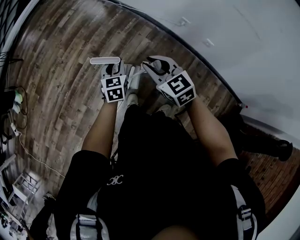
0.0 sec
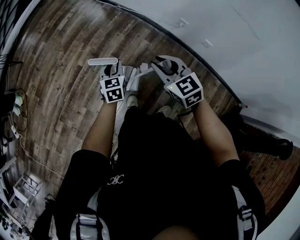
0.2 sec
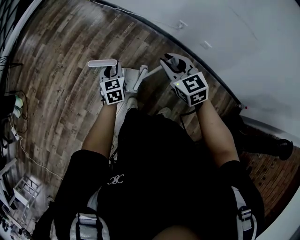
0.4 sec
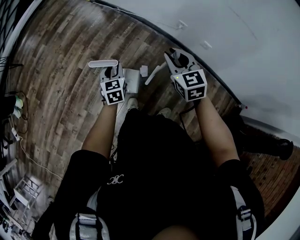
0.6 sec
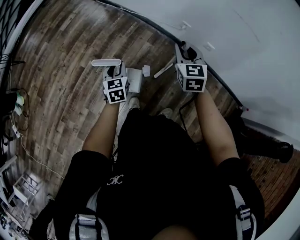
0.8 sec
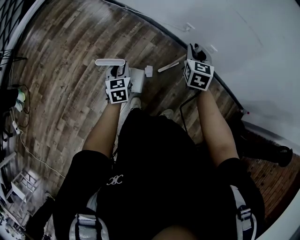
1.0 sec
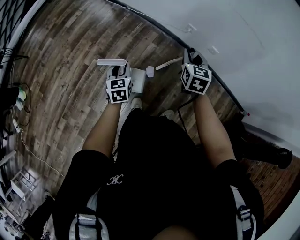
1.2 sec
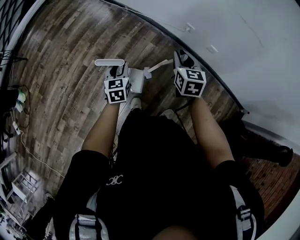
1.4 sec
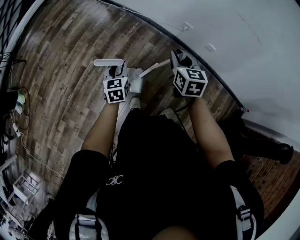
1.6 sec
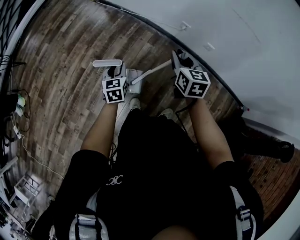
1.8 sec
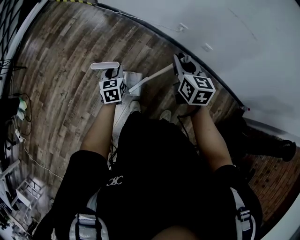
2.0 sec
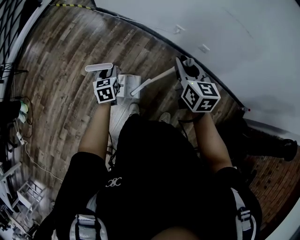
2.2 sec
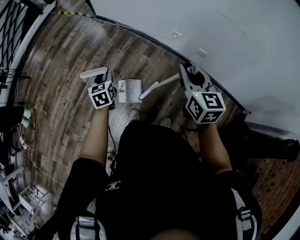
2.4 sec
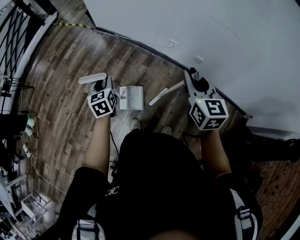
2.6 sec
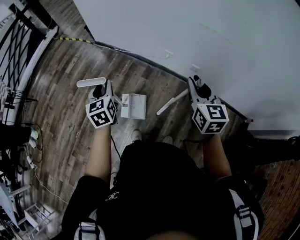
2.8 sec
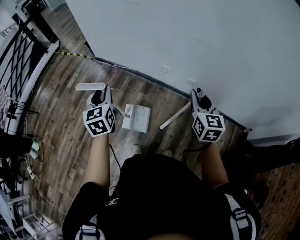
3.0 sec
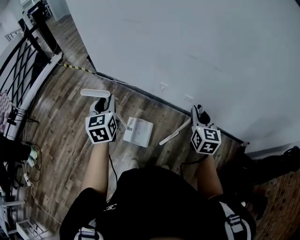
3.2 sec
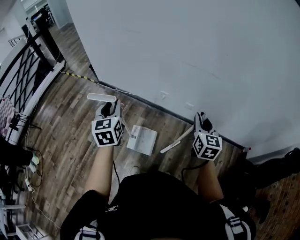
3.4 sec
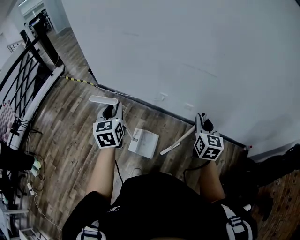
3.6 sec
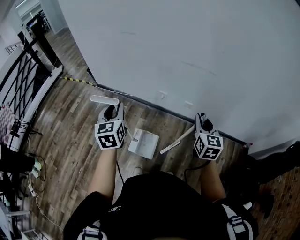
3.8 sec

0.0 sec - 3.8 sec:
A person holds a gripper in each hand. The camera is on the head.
0.0 sec - 1.2 sec: The right gripper shifts by some 20 cm, and rotates some 40 degrees.
1.2 sec - 2.6 sec: The left gripper goes approximately 10 cm upward; the right gripper heads upward, backward and to the right, covering roughly 20 cm.
2.6 sec - 3.8 sec: The right gripper heads to the right, covering about 15 cm, and changes its angle by approximately 20 degrees. The left gripper travels upward and to the right by approximately 25 cm, and changes its angle by approximately 20 degrees.

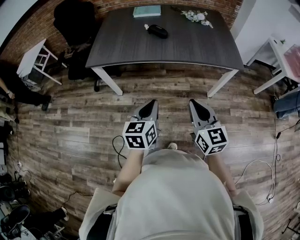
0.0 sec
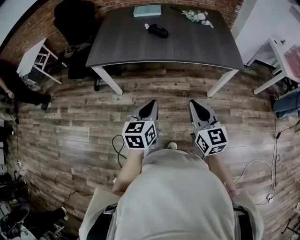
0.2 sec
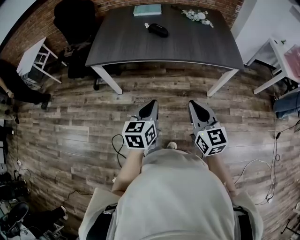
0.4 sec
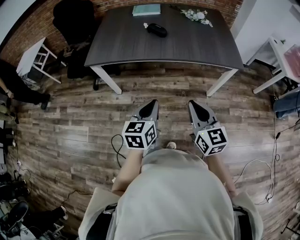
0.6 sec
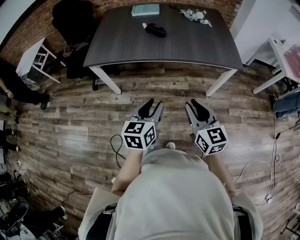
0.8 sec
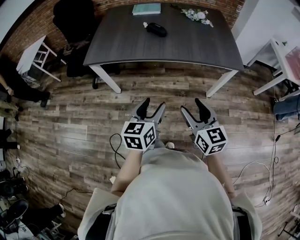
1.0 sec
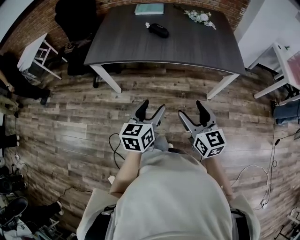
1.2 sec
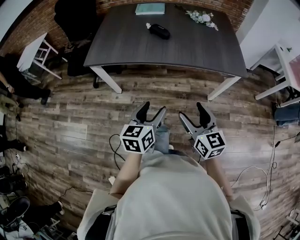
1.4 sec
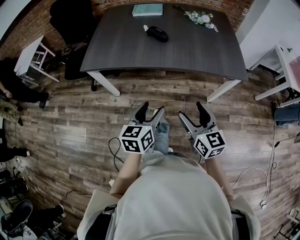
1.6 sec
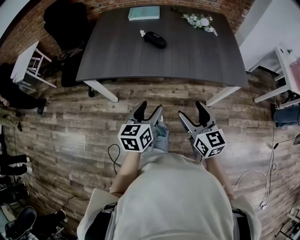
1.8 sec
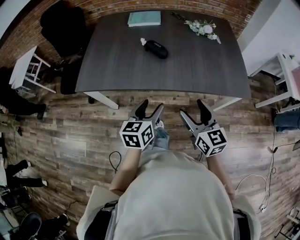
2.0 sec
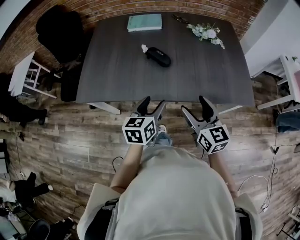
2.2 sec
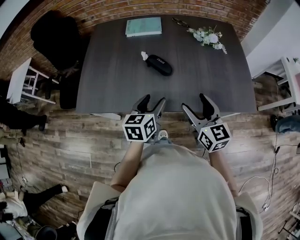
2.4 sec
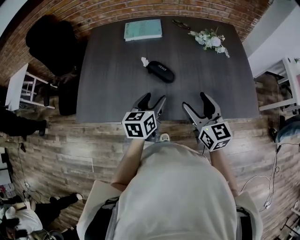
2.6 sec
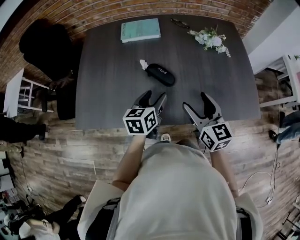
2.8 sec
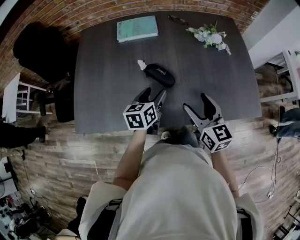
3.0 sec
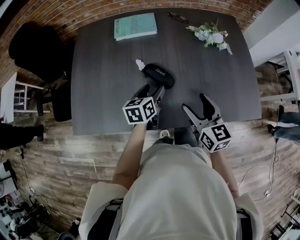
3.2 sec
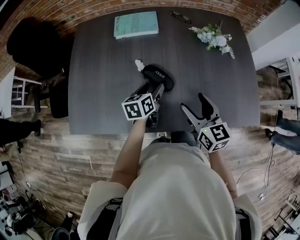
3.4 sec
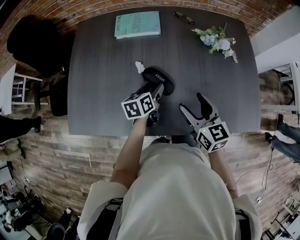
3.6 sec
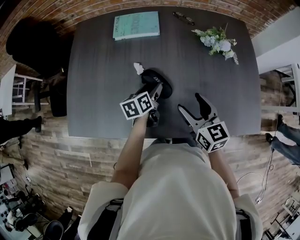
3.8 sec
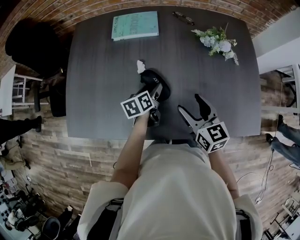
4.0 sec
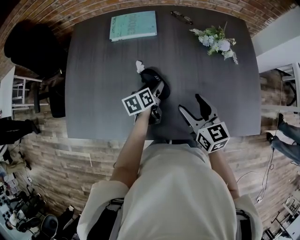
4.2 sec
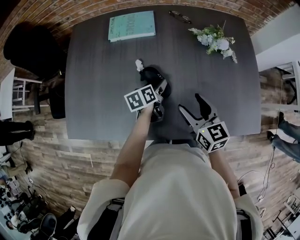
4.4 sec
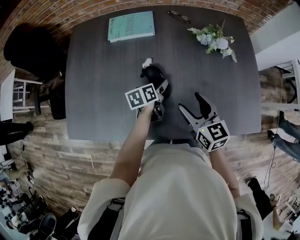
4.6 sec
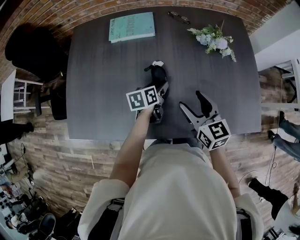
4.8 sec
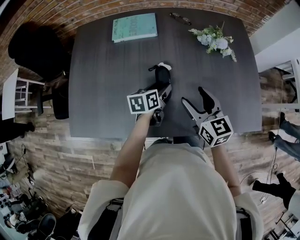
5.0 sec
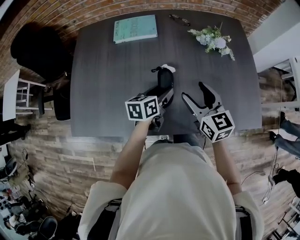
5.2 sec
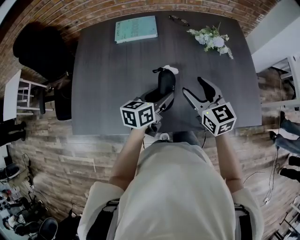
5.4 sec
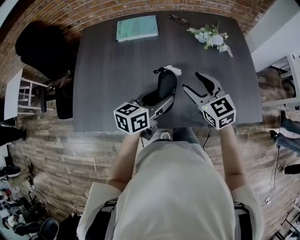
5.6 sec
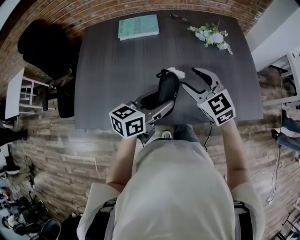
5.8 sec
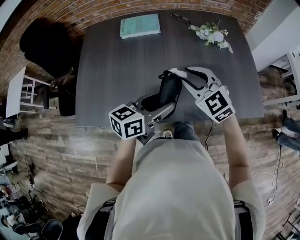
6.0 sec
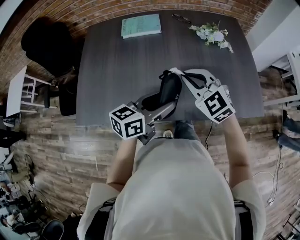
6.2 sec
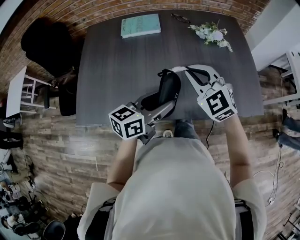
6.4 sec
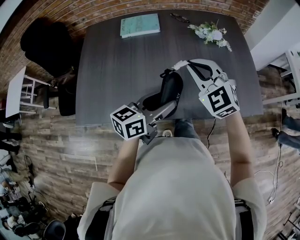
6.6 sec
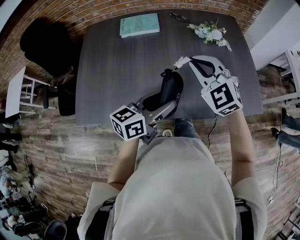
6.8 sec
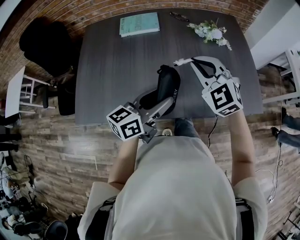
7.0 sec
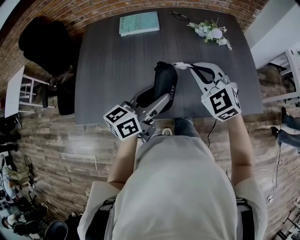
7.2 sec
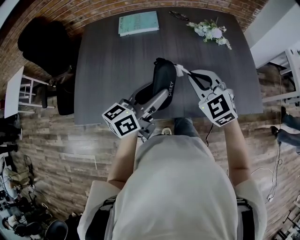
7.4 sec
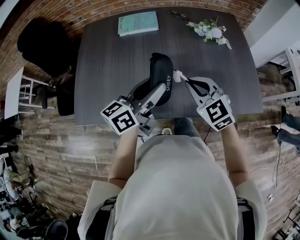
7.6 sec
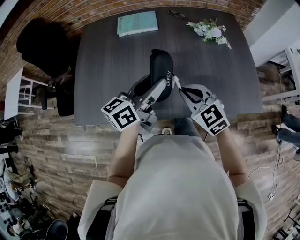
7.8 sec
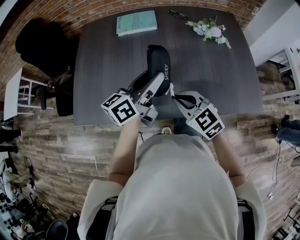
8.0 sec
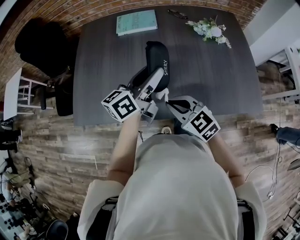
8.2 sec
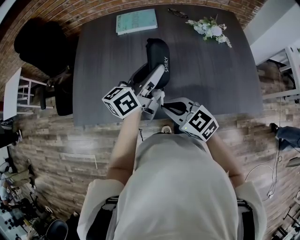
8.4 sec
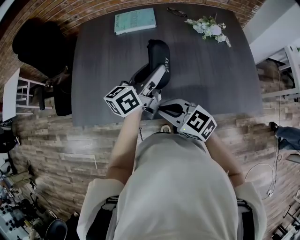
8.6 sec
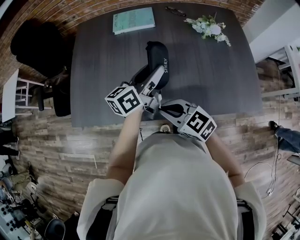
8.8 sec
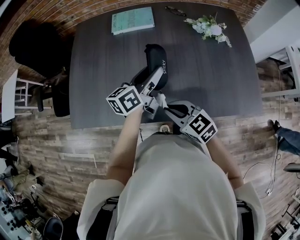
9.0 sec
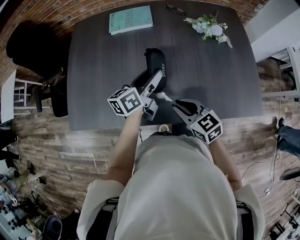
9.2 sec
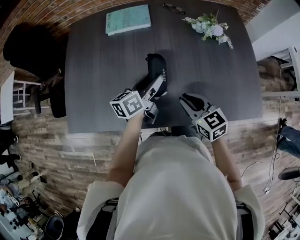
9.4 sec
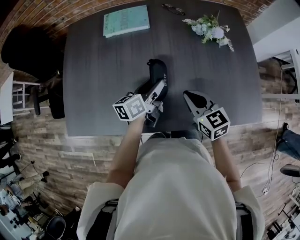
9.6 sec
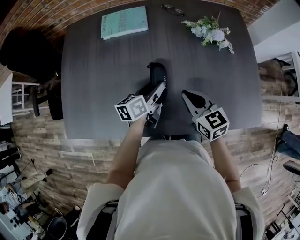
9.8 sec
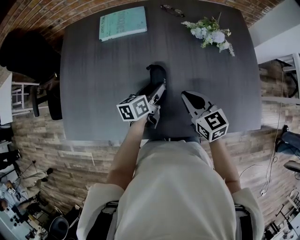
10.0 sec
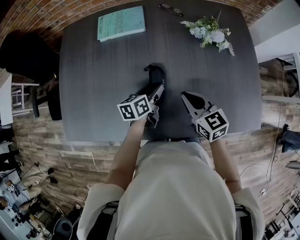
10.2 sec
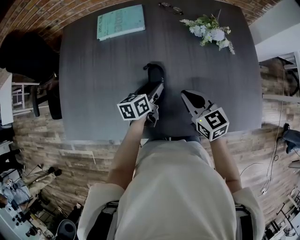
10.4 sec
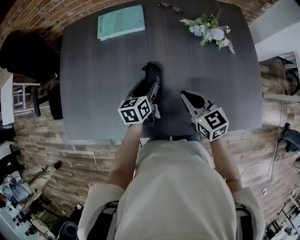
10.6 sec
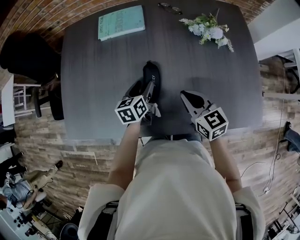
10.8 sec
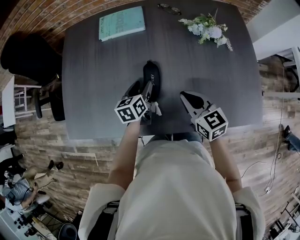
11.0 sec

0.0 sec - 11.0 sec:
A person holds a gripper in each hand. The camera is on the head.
0.0 sec - 1.6 sec: The two grippers go approximately 10 cm forward. The left gripper opens up. The right gripper opens its fingers.
1.6 sec - 3.2 sec: The two grippers travel together, forward, roughly 40 cm.
3.2 sec - 4.8 sec: The left gripper moves forward, downward and to the right, some 10 cm; the right gripper goes roughly 5 cm forward.
4.8 sec - 6.2 sec: The left gripper travels backward and upward by about 25 cm, and turns by roughly 40 degrees, while the right gripper heads upward, to the left and backward, covering roughly 10 cm, rotates around the line of its fingers by approximately 40 degrees, counterclockwise from behind, and closes.
6.2 sec - 7.8 sec: The right gripper ends up roughly 5 cm from where it was; the left gripper changes place by roughly 5 cm.
7.8 sec - 9.4 sec: The left gripper travels downward and forward by approximately 15 cm. Meanwhile the right gripper shifts approximately 5 cm downward, and turns by about 30 degrees.
9.4 sec - 11.0 sec: The left gripper moves downward, approximately 10 cm, and swivels about 30 degrees, while the right gripper ends up approximately 5 cm from where it was.

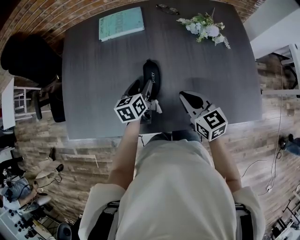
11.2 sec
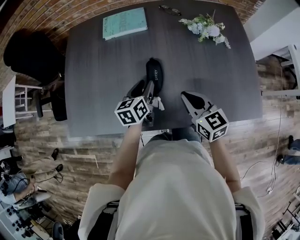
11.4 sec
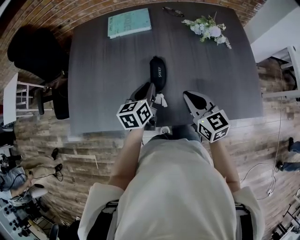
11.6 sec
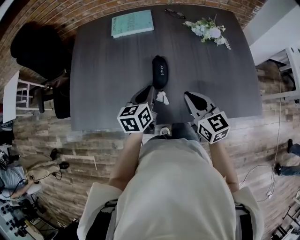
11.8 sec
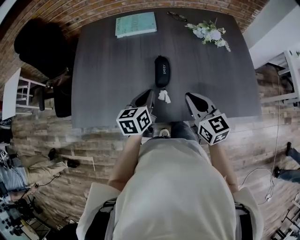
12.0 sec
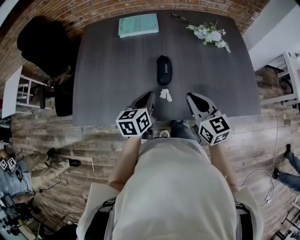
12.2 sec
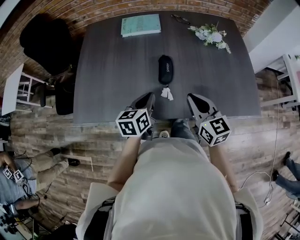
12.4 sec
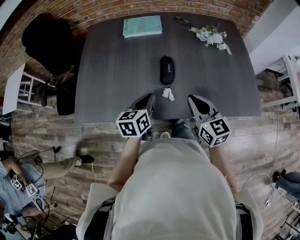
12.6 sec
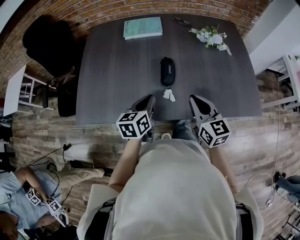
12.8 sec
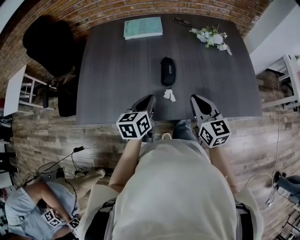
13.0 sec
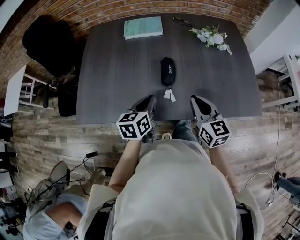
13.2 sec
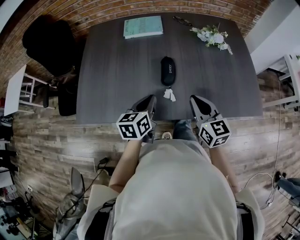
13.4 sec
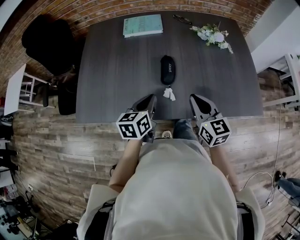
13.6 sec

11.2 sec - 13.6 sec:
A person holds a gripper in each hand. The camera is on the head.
11.2 sec - 12.4 sec: The right gripper is displaced backward and upward by roughly 10 cm. The left gripper shifts roughly 15 cm backward and upward, and closes up.
12.4 sec - 13.6 sec: The grippers make only small movements.

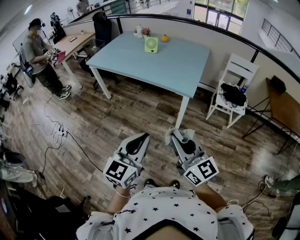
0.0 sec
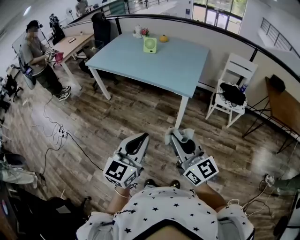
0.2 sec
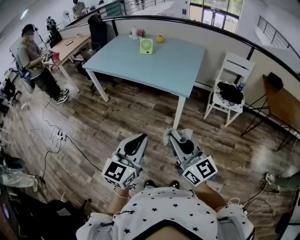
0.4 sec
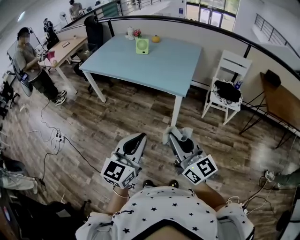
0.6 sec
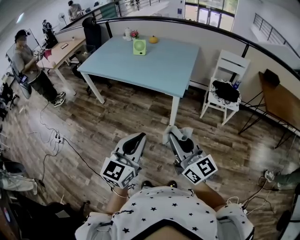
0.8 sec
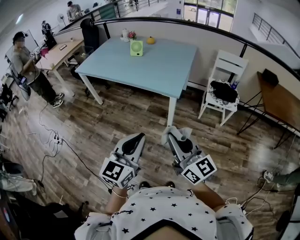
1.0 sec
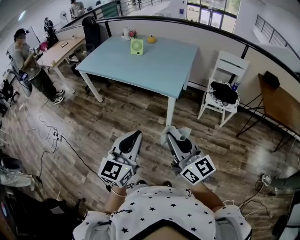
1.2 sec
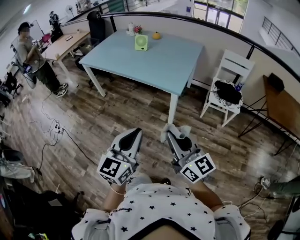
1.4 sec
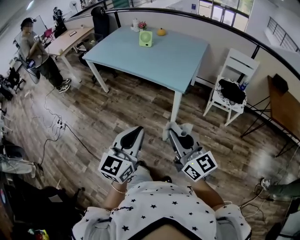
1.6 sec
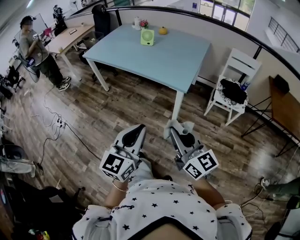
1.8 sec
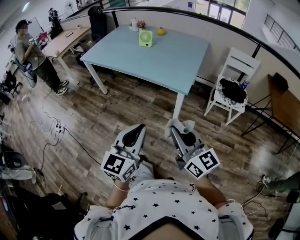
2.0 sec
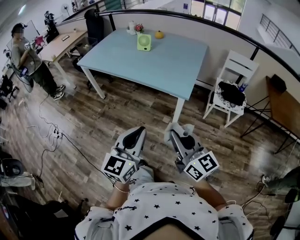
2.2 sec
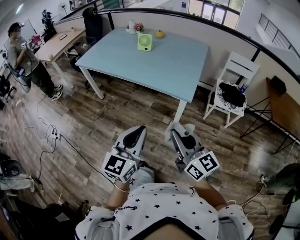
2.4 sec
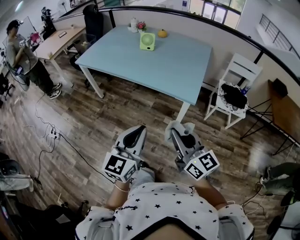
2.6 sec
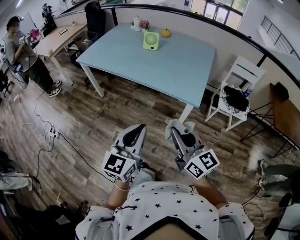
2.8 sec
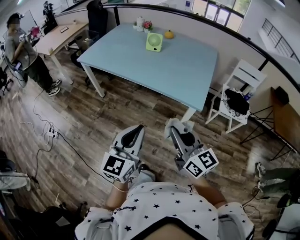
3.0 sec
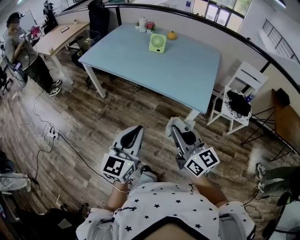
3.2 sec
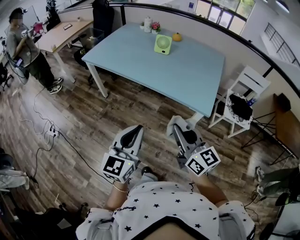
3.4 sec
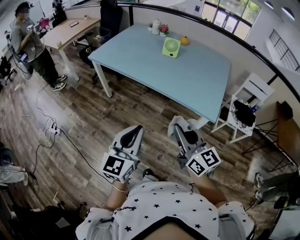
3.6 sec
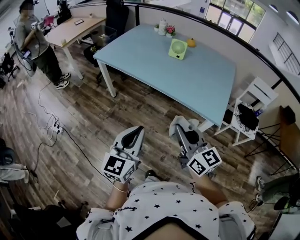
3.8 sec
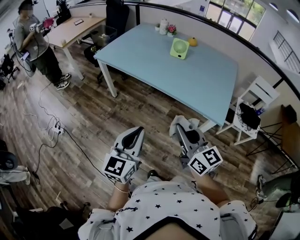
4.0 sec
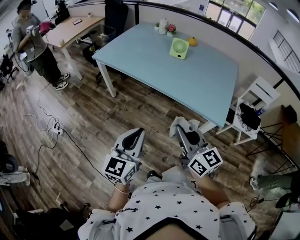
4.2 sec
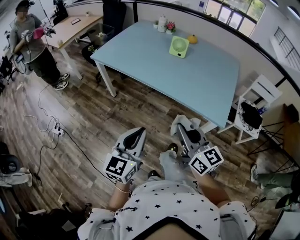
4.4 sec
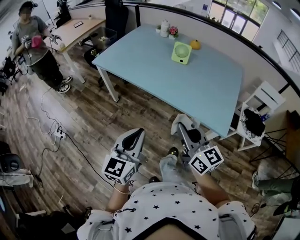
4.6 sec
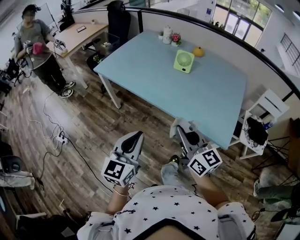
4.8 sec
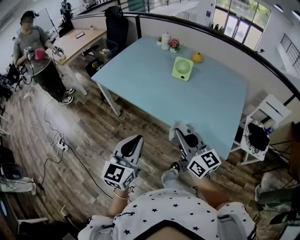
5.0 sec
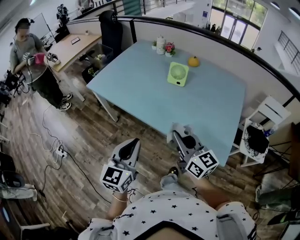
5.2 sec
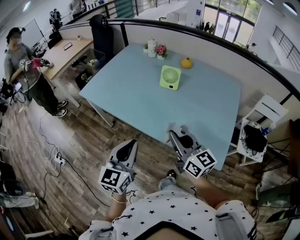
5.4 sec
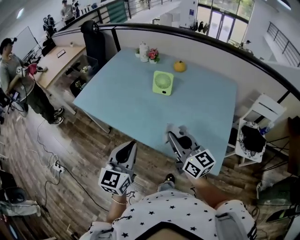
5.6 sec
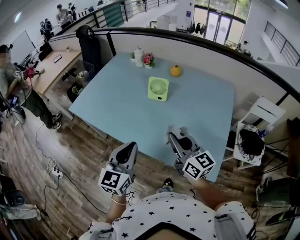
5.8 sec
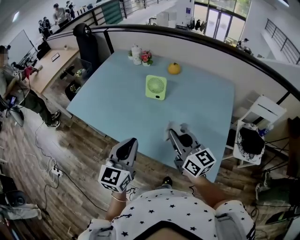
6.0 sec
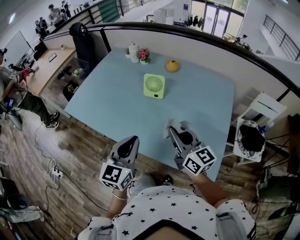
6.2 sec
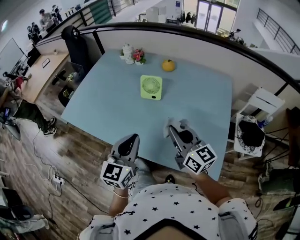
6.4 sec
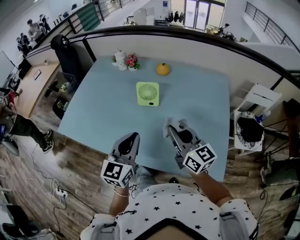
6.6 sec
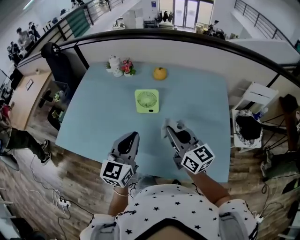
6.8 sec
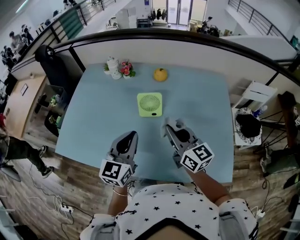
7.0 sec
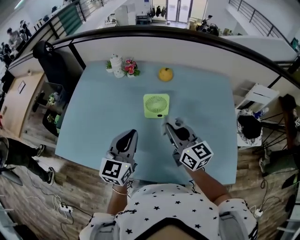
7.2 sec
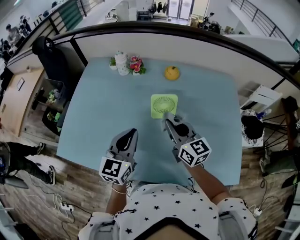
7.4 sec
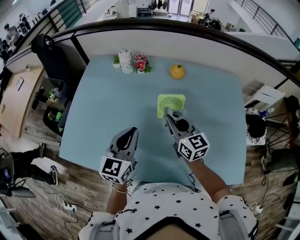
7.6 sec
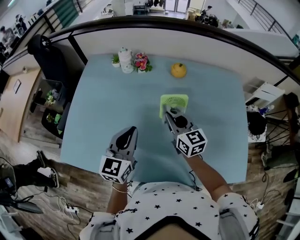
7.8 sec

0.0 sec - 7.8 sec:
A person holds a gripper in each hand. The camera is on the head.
0.0 sec - 1.6 sec: Both grippers move to the right, roughly 10 cm.
1.6 sec - 3.2 sec: The two grippers go some 25 cm forward and to the left.
3.2 sec - 4.6 sec: Both grippers move forward and to the left, roughly 15 cm.
4.6 sec - 6.2 sec: The grippers both shift forward and to the right by about 30 cm.
6.2 sec - 7.8 sec: The two grippers go some 30 cm forward and to the left. The right gripper rotates roughly 30 degrees.
